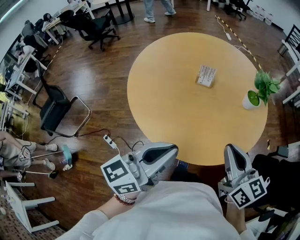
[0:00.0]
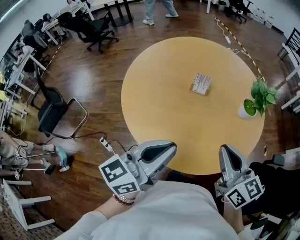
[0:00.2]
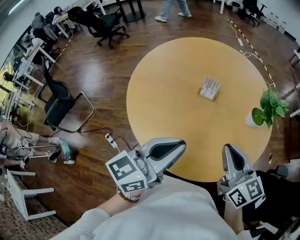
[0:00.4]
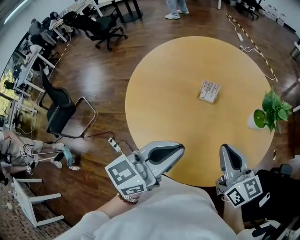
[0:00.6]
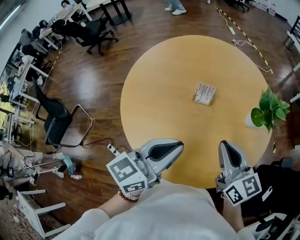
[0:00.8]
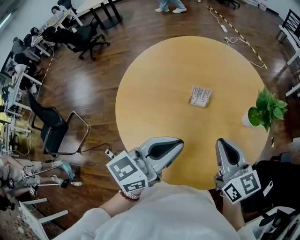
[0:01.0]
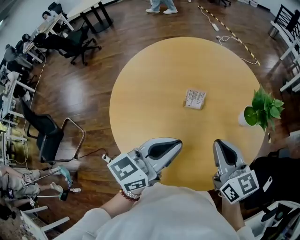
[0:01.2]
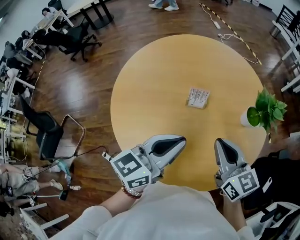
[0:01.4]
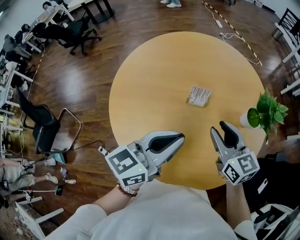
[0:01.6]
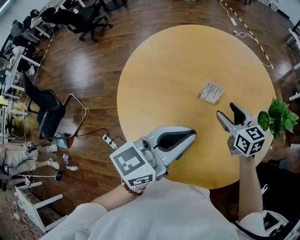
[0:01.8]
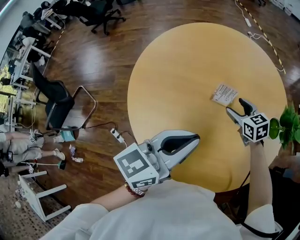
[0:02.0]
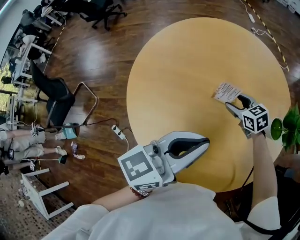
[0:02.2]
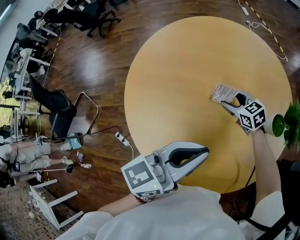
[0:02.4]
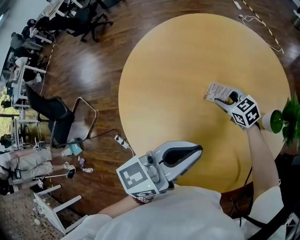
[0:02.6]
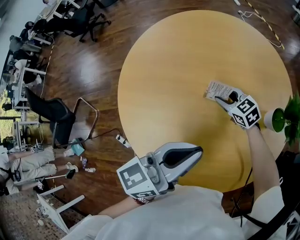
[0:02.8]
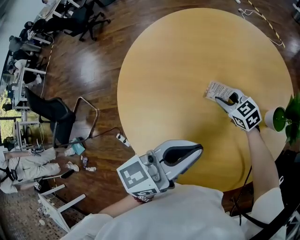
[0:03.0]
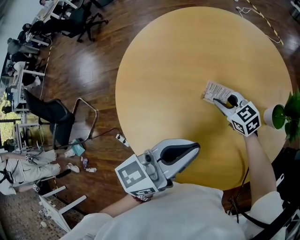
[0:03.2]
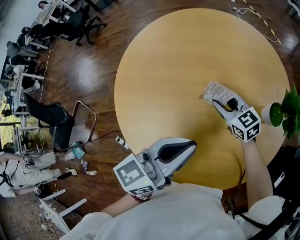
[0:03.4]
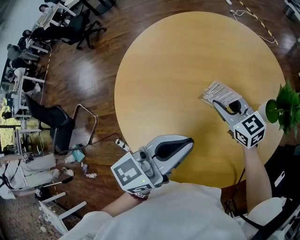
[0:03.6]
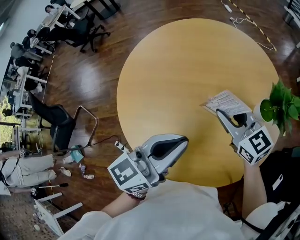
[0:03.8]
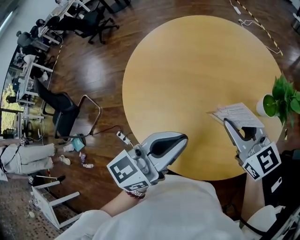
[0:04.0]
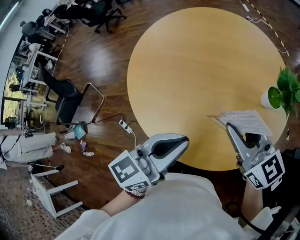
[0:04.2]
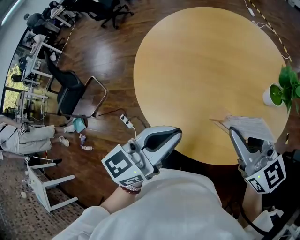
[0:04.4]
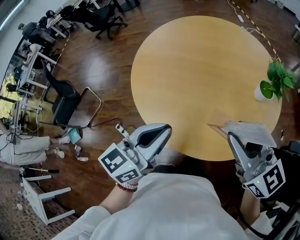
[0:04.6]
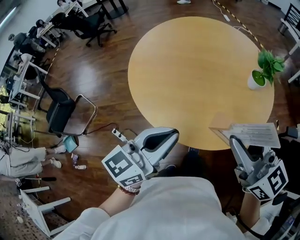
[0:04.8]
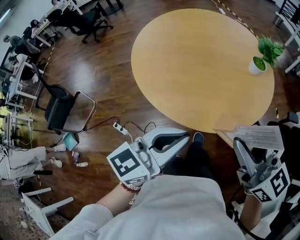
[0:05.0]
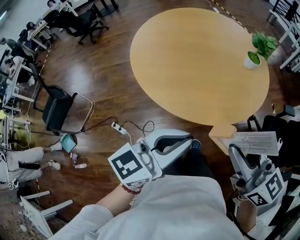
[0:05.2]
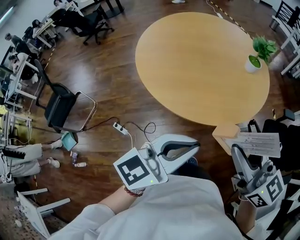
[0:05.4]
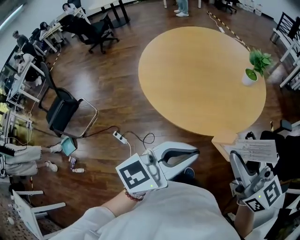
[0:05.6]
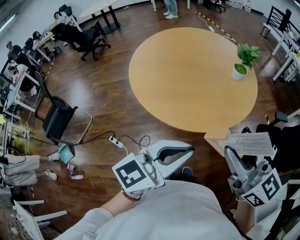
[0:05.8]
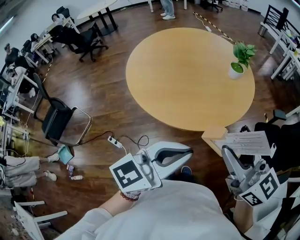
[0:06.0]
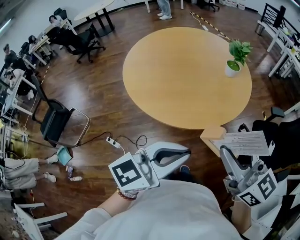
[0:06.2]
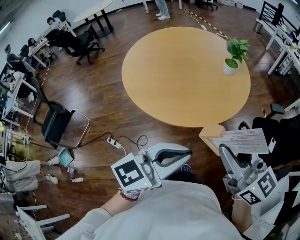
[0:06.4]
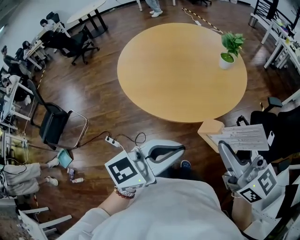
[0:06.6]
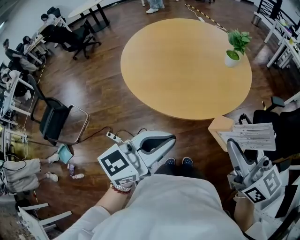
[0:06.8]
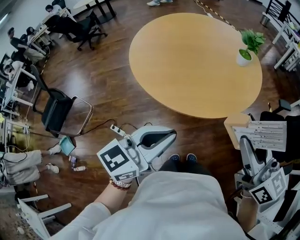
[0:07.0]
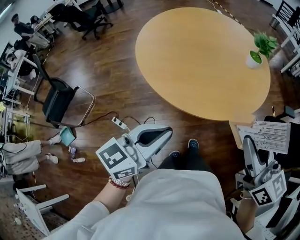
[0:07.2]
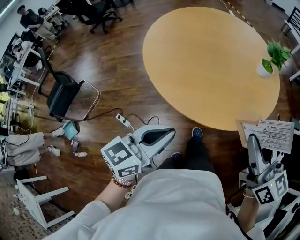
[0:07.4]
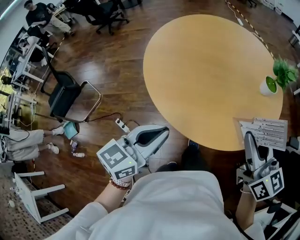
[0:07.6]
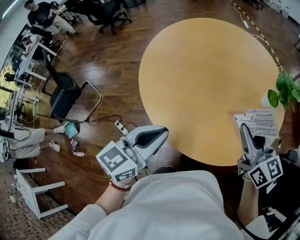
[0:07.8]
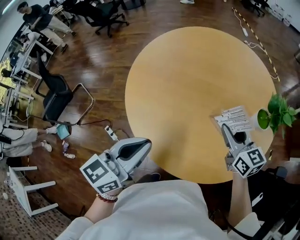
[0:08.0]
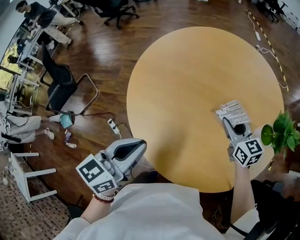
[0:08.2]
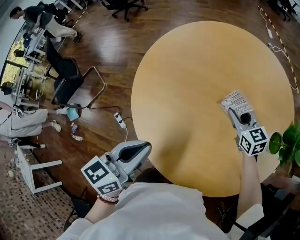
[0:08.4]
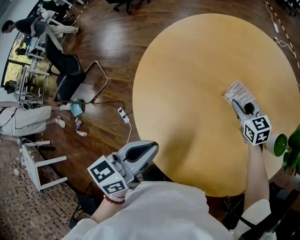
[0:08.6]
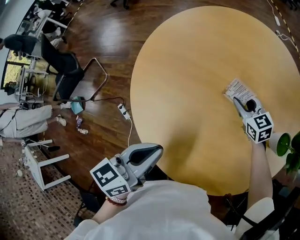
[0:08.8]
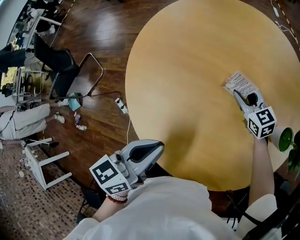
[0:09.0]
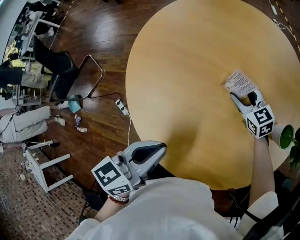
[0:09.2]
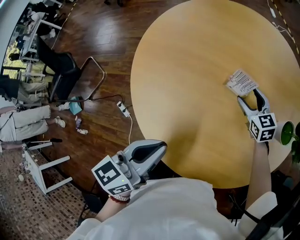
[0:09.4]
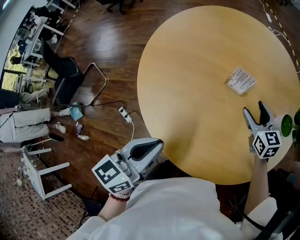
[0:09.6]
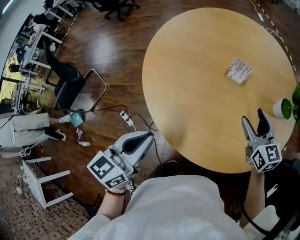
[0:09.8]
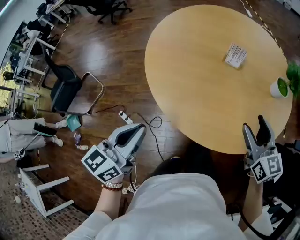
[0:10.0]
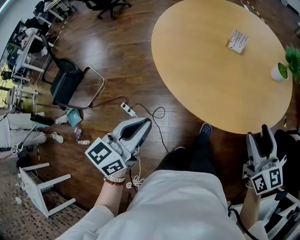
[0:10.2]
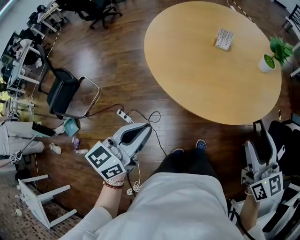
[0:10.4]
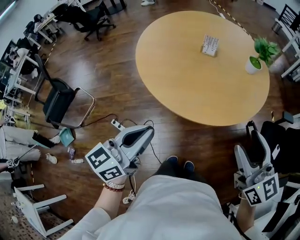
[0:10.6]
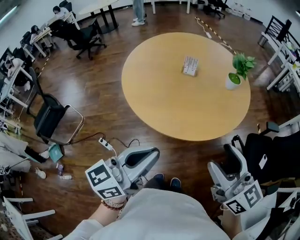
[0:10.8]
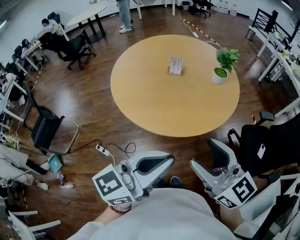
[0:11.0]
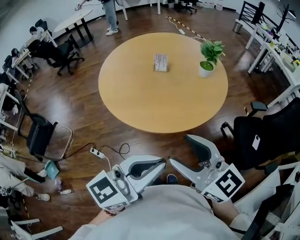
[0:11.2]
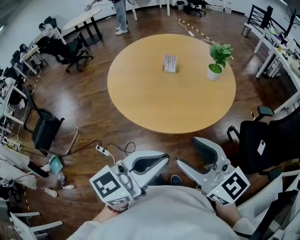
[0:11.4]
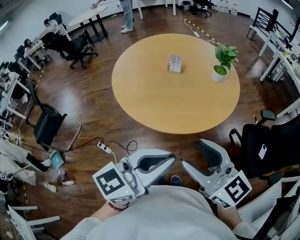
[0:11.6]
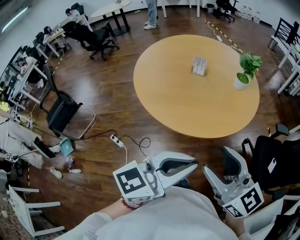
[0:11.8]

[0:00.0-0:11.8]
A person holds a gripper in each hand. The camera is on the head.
0:00.0 to 0:01.4: Both grippers travel together forward, some 20 cm.
0:01.4 to 0:03.0: The right gripper heads downward and forward, covering about 35 cm, changes its angle by roughly 40 degrees, and opens. The left gripper shifts some 10 cm forward and downward.
0:03.0 to 0:04.4: The right gripper goes about 40 cm upward and backward, and tips its fingers upward by about 30 degrees; the left gripper heads backward, covering roughly 15 cm.
0:04.4 to 0:06.0: Both grippers move backward, some 35 cm. The left gripper rotates some 30 degrees.
0:06.0 to 0:07.4: The right gripper is displaced forward by approximately 10 cm, while the left gripper travels to the left, downward and forward by approximately 15 cm, and changes its angle by about 20 degrees.
0:07.4 to 0:08.8: The right gripper changes place by about 60 cm, and changes its angle by some 40 degrees; the left gripper changes place by roughly 30 cm, and turns by approximately 30 degrees.
0:08.8 to 0:10.4: The left gripper shifts roughly 35 cm backward and to the left, and changes its angle by approximately 20 degrees; the right gripper shifts some 60 cm backward and upward, swivels approximately 40 degrees, and opens its fingers.
0:10.4 to 0:11.8: The right gripper travels backward and upward by roughly 15 cm; the left gripper moves to the right and upward, roughly 30 cm, and swivels approximately 30 degrees.

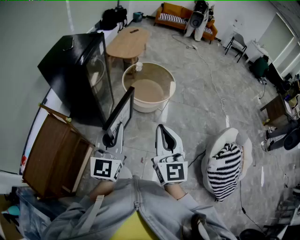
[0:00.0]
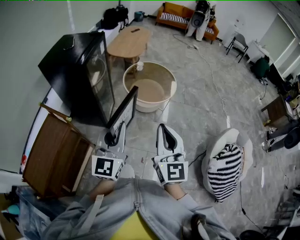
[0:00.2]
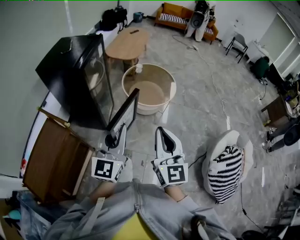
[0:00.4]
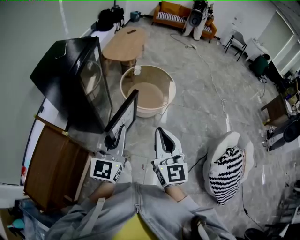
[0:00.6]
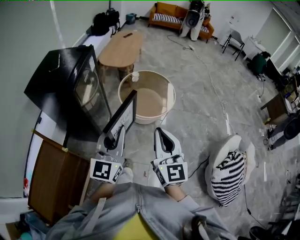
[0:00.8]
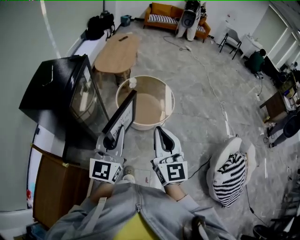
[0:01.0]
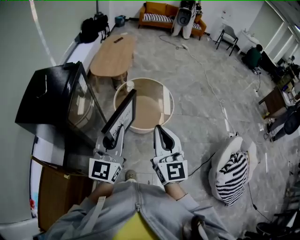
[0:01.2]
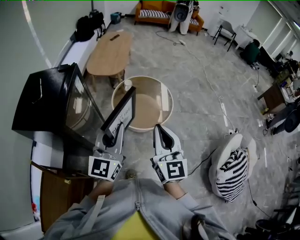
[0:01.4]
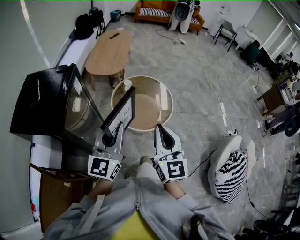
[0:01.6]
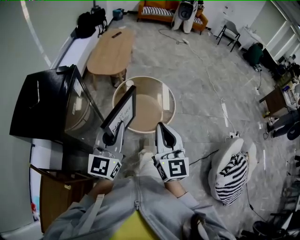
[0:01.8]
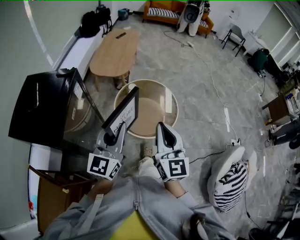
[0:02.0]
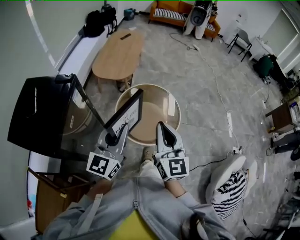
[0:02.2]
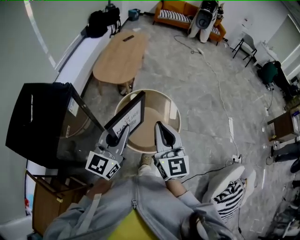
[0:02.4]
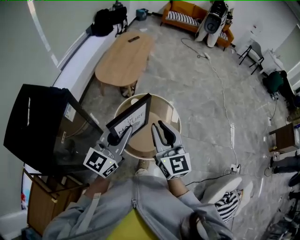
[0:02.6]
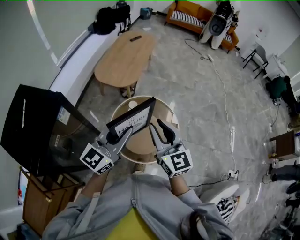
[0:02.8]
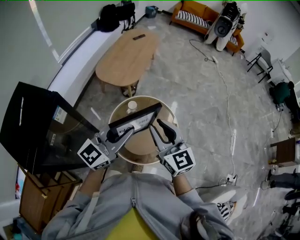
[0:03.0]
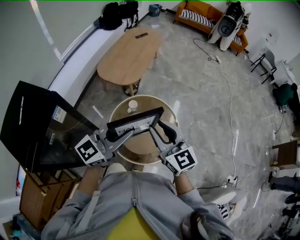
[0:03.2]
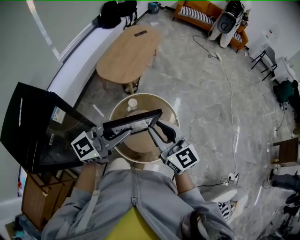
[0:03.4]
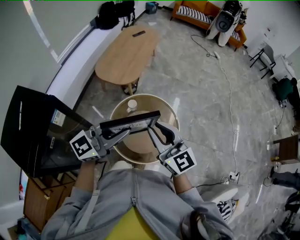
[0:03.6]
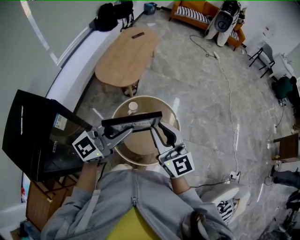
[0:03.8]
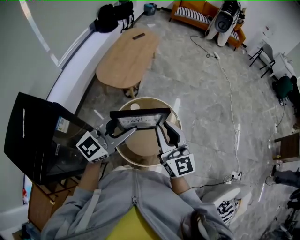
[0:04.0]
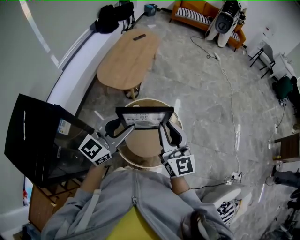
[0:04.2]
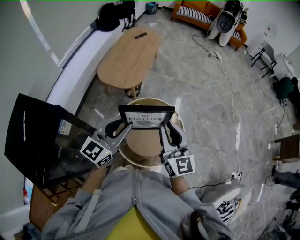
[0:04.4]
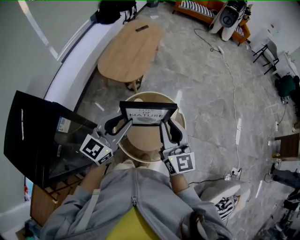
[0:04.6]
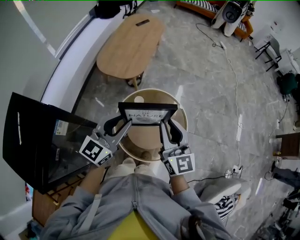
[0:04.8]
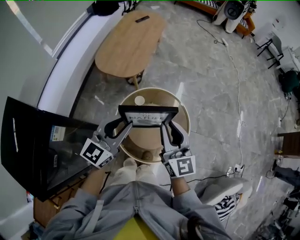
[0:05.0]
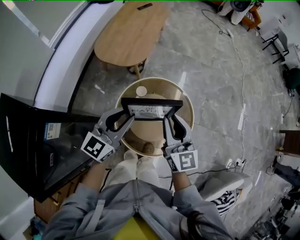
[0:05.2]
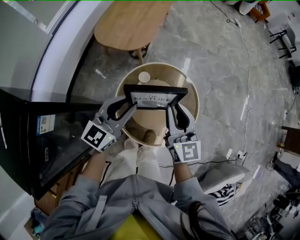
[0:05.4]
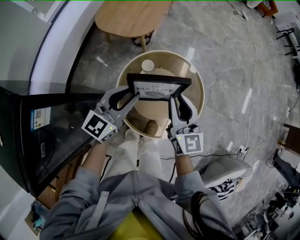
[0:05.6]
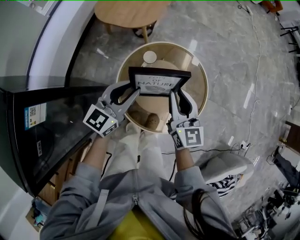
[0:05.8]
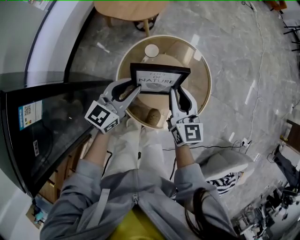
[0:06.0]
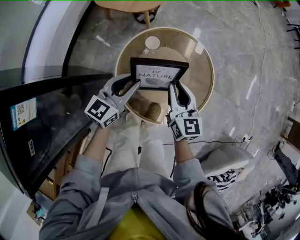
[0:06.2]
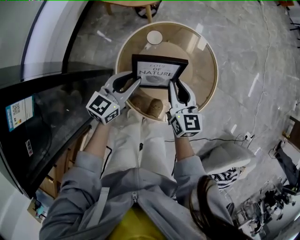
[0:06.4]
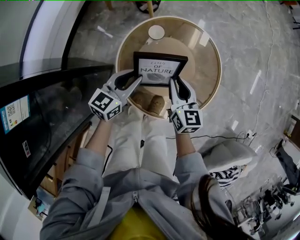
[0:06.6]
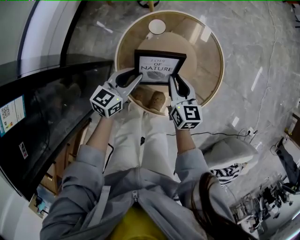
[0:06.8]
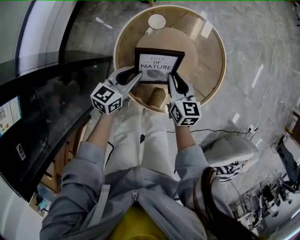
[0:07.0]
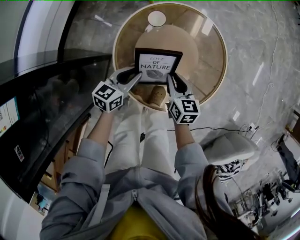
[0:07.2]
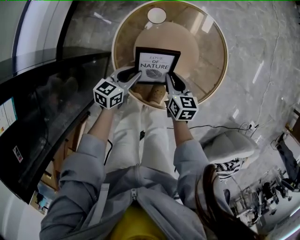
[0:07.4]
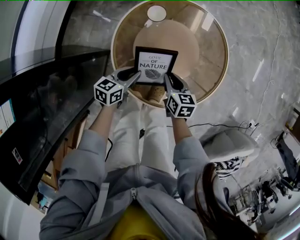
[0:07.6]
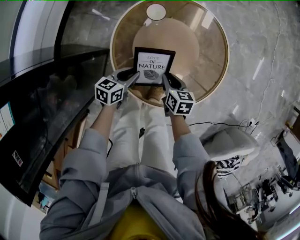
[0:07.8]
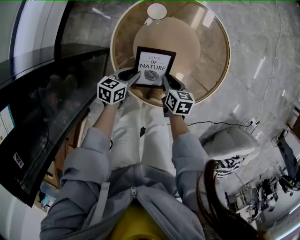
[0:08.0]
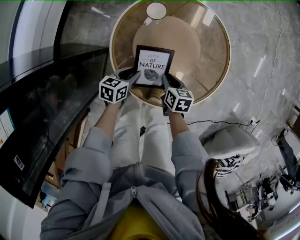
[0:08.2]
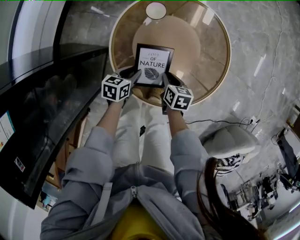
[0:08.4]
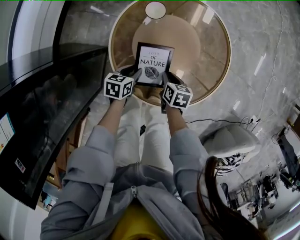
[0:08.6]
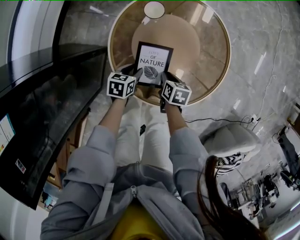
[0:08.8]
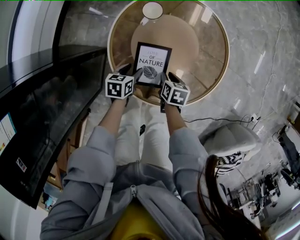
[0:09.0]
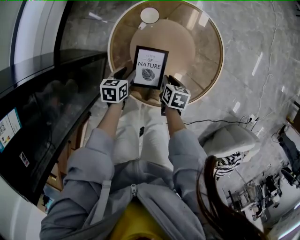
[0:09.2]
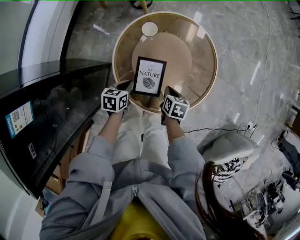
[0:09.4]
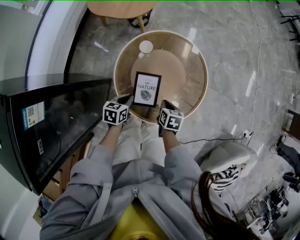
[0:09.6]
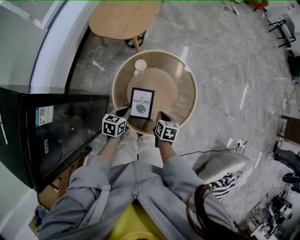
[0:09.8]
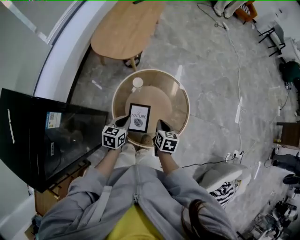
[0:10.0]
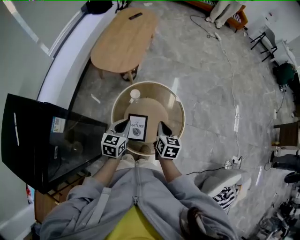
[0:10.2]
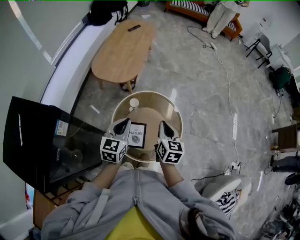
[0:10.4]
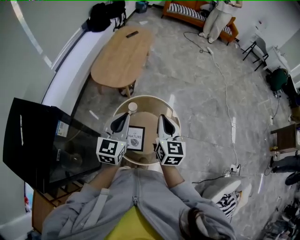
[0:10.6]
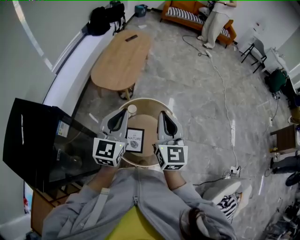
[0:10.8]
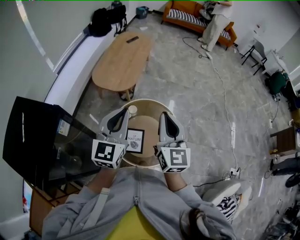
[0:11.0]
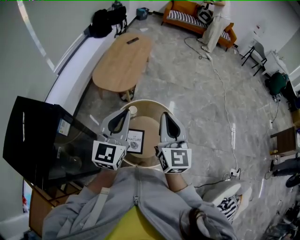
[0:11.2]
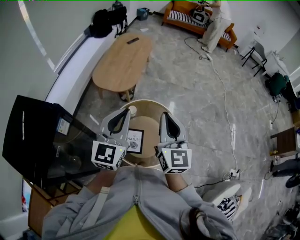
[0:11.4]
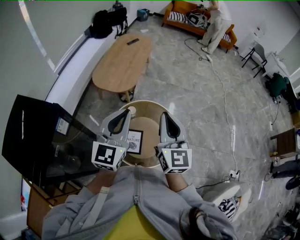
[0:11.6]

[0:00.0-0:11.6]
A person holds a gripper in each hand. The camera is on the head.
0:00.0 to 0:01.4: The two grippers go some 35 cm forward.
0:01.4 to 0:02.8: The two grippers go about 35 cm forward. The right gripper turns by some 30 degrees, and opens.
0:02.8 to 0:04.4: The two grippers go approximately 10 cm forward. The left gripper opens its fingers.
0:04.4 to 0:05.8: The grippers both shift downward by roughly 25 cm.
0:05.8 to 0:07.2: Both grippers travel together downward, approximately 25 cm. The left gripper swivels roughly 30 degrees, while the right gripper rotates some 30 degrees.
0:07.2 to 0:08.8: The two grippers go about 10 cm downward. The right gripper swivels roughly 30 degrees; the left gripper turns by approximately 30 degrees.
0:08.8 to 0:10.2: Both grippers move upward, about 40 cm. The left gripper changes its angle by some 30 degrees, and closes up. Meanwhile the right gripper swivels approximately 30 degrees.
0:10.2 to 0:11.6: The two grippers go some 30 cm upward. The right gripper tilts its fingers about 40 degrees upward. Meanwhile the left gripper points its fingers approximately 30 degrees further upward.
